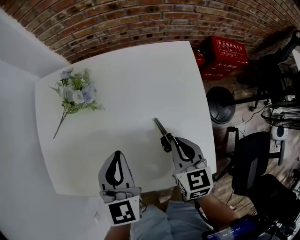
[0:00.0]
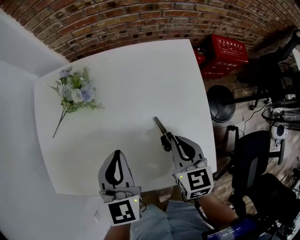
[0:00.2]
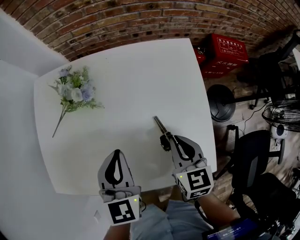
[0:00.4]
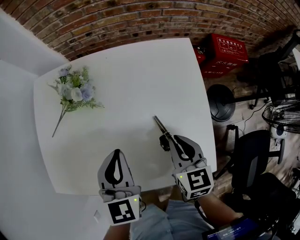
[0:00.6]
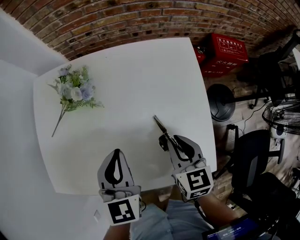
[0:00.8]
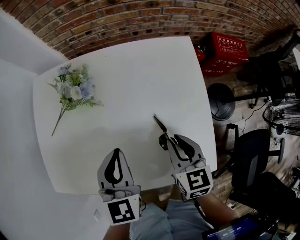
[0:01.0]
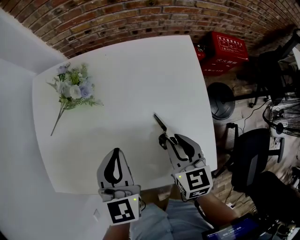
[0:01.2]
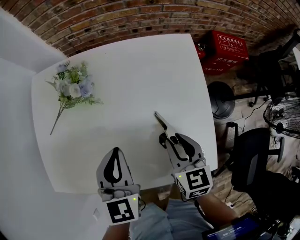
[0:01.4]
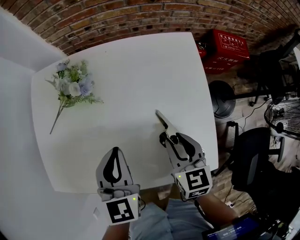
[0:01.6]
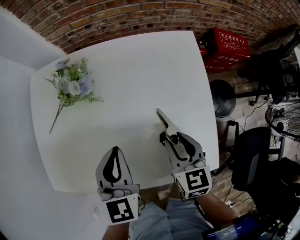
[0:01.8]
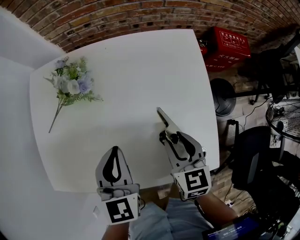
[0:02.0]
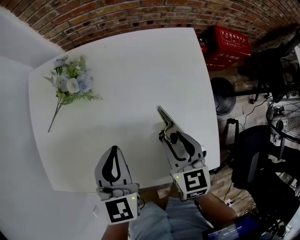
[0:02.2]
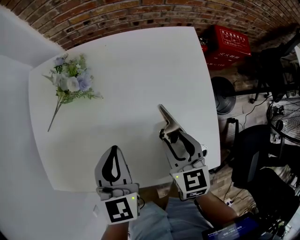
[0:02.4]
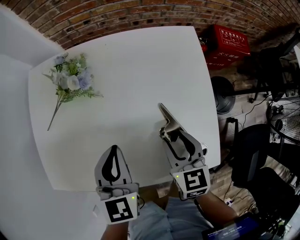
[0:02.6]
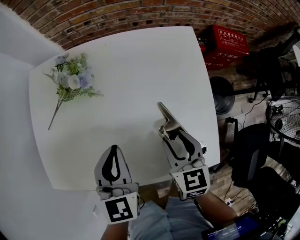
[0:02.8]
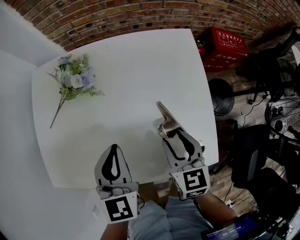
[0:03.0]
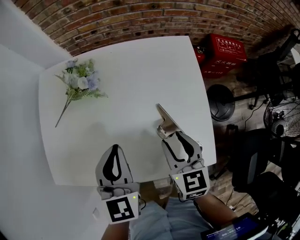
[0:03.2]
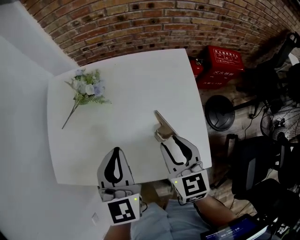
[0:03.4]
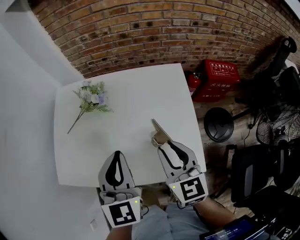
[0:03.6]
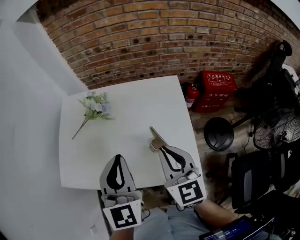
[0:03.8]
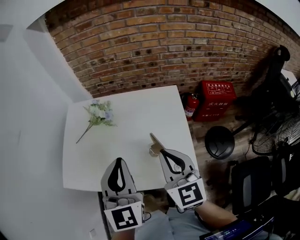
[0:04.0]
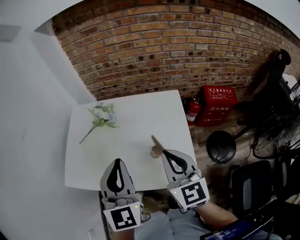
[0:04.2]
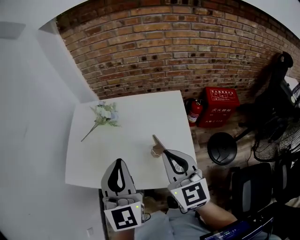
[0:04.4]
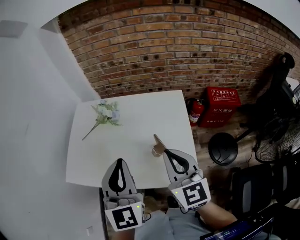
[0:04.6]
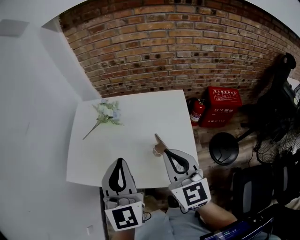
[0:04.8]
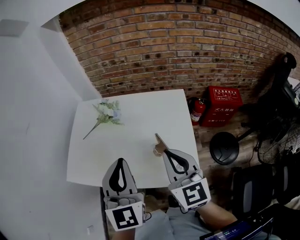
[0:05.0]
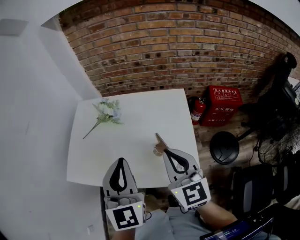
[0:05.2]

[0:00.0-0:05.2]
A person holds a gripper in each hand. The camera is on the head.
0.0 to 1.8 s: The right gripper opens its fingers.
1.8 to 3.4 s: The two grippers go roughly 10 cm upward.
3.4 to 5.2 s: The left gripper moves upward and backward, approximately 15 cm; the right gripper shifts approximately 15 cm upward, changes its angle by about 20 degrees, and closes.

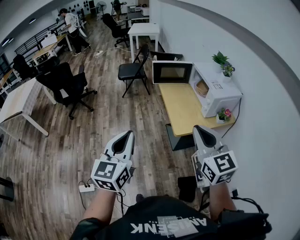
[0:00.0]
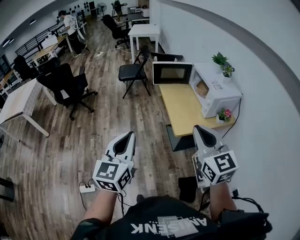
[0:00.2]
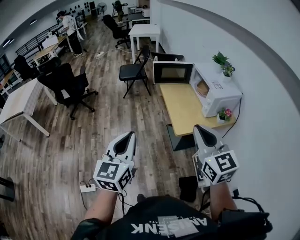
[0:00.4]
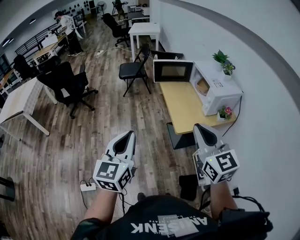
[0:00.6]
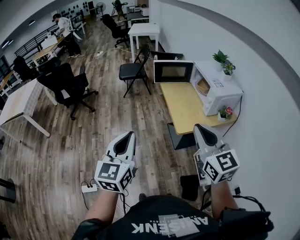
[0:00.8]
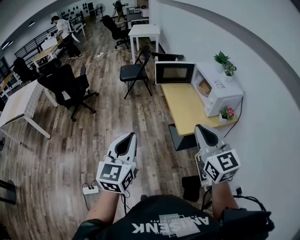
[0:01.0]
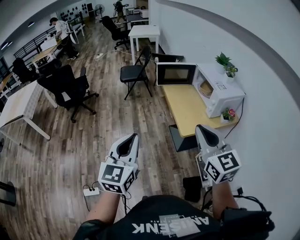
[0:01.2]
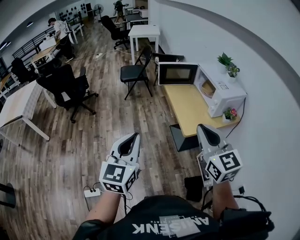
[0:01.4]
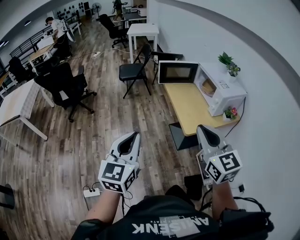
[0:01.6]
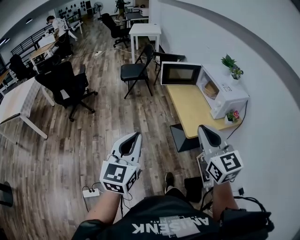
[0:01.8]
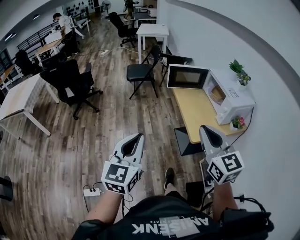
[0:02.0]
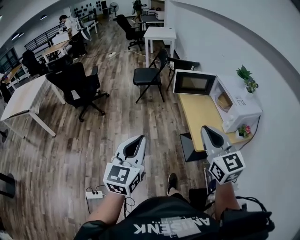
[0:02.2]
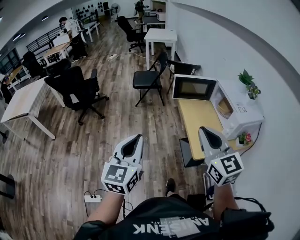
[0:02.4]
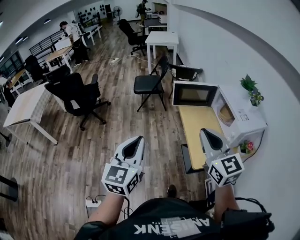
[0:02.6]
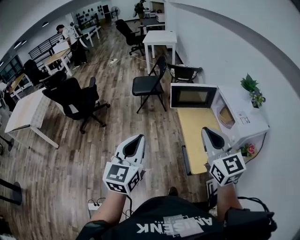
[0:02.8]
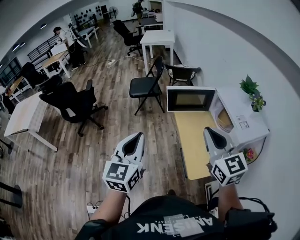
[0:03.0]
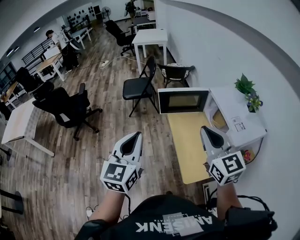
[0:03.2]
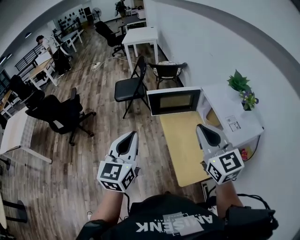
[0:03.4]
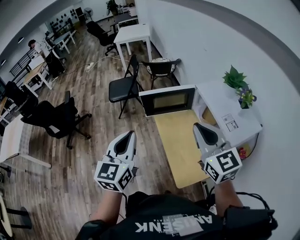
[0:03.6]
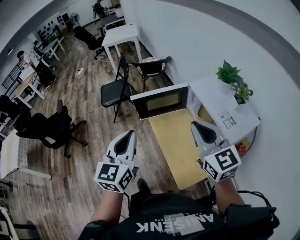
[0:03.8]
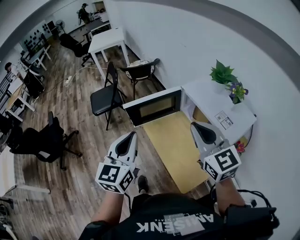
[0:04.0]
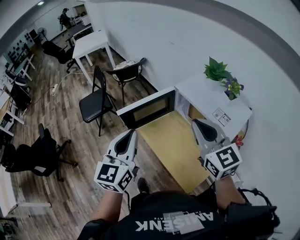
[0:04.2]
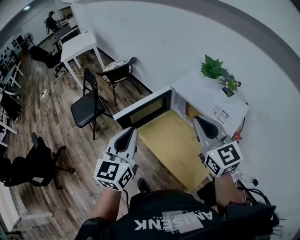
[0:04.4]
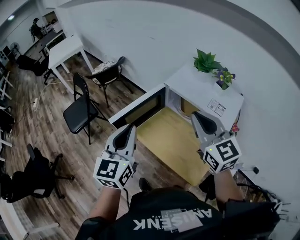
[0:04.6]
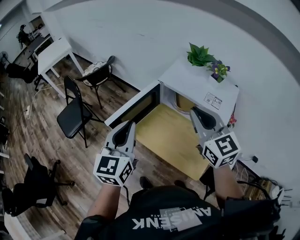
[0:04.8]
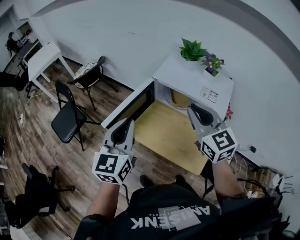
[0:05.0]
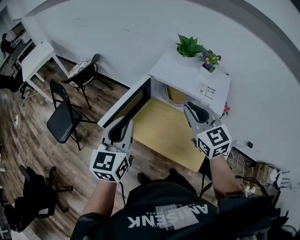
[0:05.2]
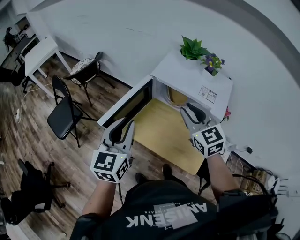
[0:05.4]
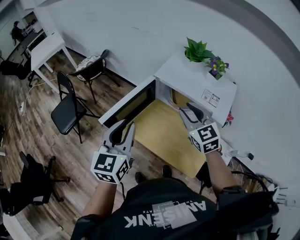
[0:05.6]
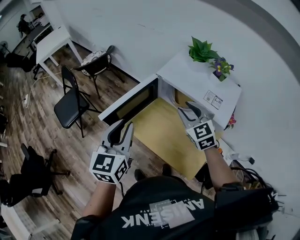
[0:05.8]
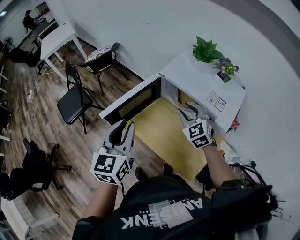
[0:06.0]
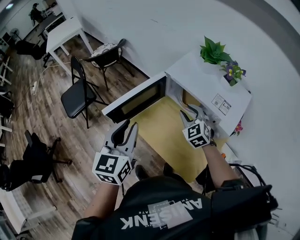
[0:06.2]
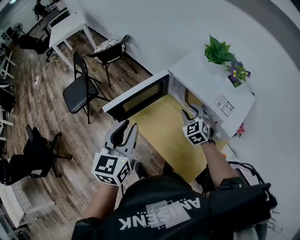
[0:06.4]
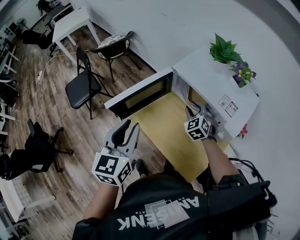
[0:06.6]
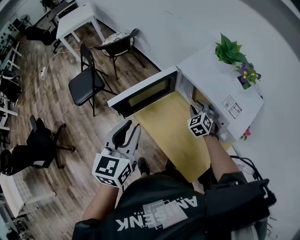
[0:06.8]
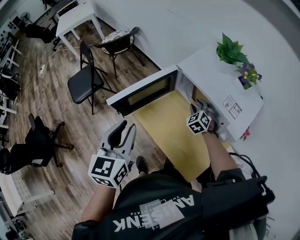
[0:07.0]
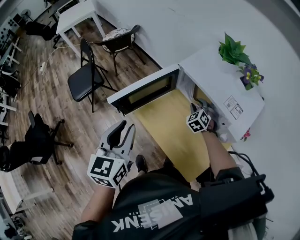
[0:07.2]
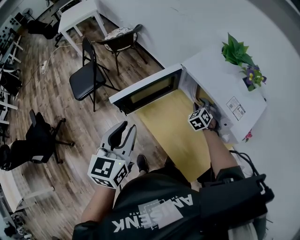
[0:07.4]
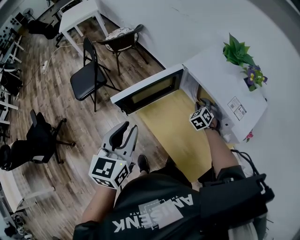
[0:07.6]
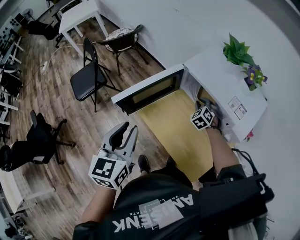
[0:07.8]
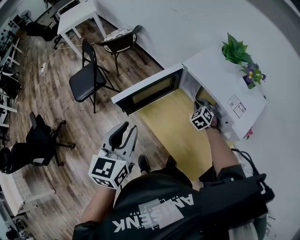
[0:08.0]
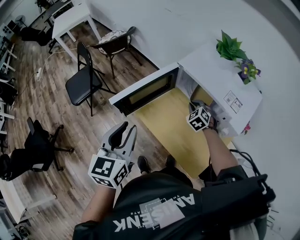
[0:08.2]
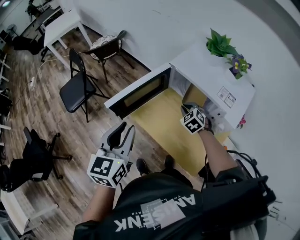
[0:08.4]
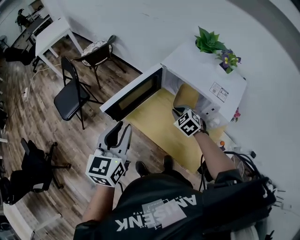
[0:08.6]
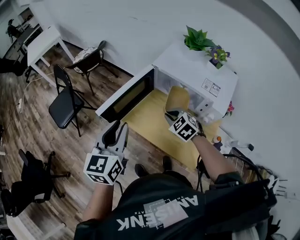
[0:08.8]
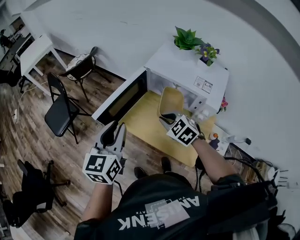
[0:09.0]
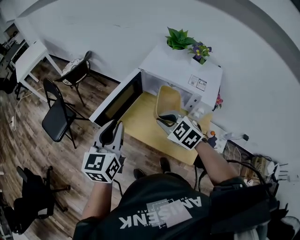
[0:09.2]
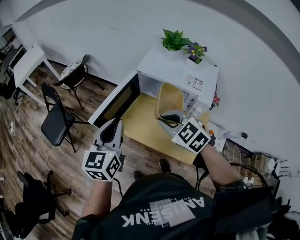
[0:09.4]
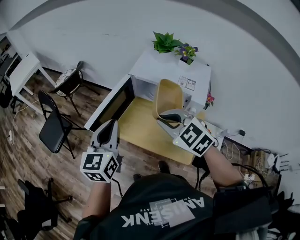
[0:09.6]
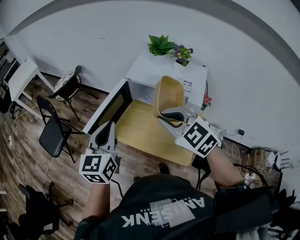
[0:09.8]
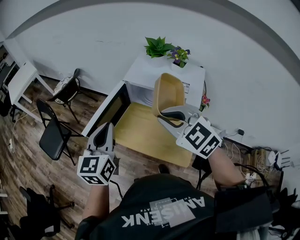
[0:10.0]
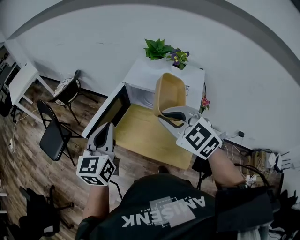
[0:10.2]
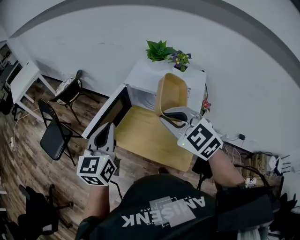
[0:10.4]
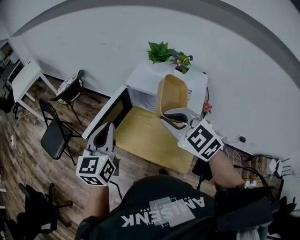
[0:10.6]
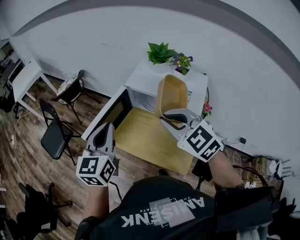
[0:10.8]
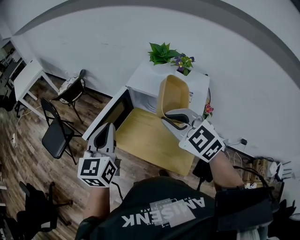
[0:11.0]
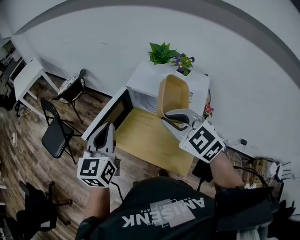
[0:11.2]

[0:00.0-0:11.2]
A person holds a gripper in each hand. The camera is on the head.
0.0 to 1.6 s: The two grippers go roughly 5 cm to the left.
1.6 to 3.2 s: The two grippers go some 35 cm forward.
3.2 to 4.8 s: The right gripper shifts by approximately 20 cm, and rotates approximately 40 degrees; the left gripper changes place by some 30 cm, and rotates about 40 degrees.
4.8 to 6.4 s: The right gripper goes approximately 25 cm downward and forward, swivels some 40 degrees, and opens, while the left gripper travels downward by approximately 5 cm, and opens.
6.4 to 8.0 s: The right gripper shifts some 10 cm downward and forward, and closes.
8.0 to 9.6 s: The right gripper goes about 35 cm upward and backward, and swivels roughly 30 degrees. The left gripper changes its angle by roughly 20 degrees.
9.6 to 11.2 s: The right gripper is displaced upward and to the right by about 10 cm. Meanwhile the left gripper moves roughly 5 cm.

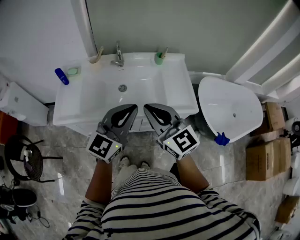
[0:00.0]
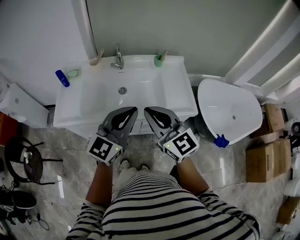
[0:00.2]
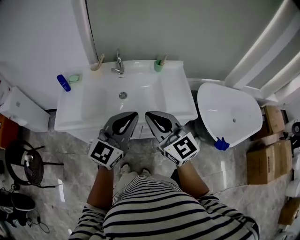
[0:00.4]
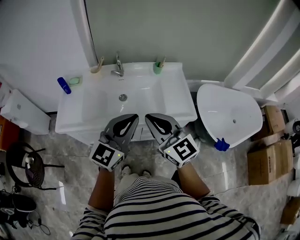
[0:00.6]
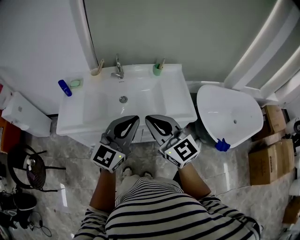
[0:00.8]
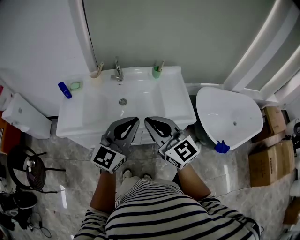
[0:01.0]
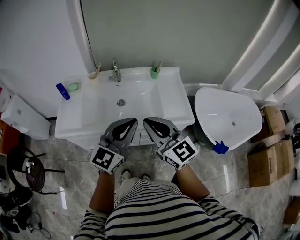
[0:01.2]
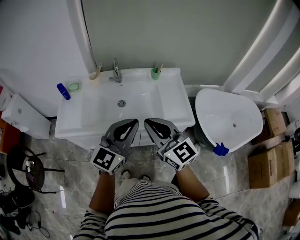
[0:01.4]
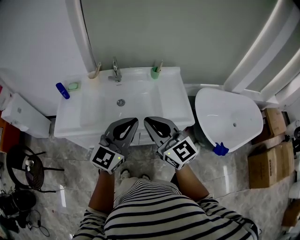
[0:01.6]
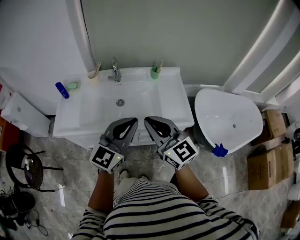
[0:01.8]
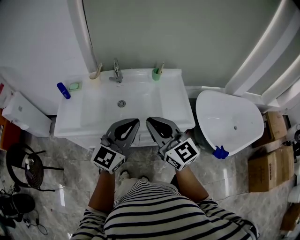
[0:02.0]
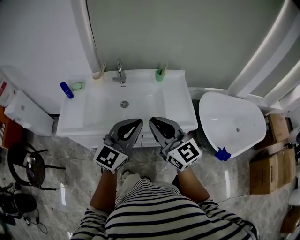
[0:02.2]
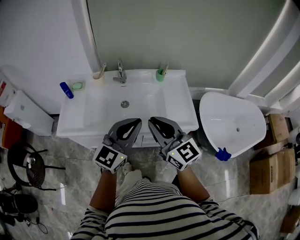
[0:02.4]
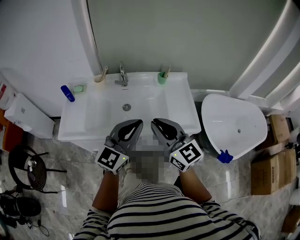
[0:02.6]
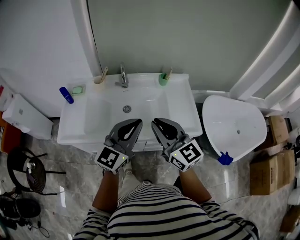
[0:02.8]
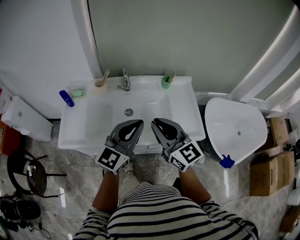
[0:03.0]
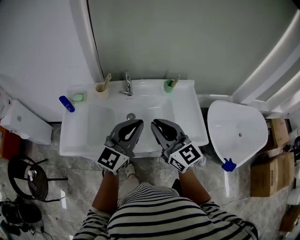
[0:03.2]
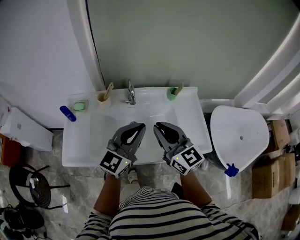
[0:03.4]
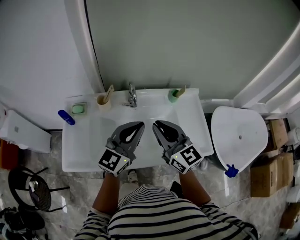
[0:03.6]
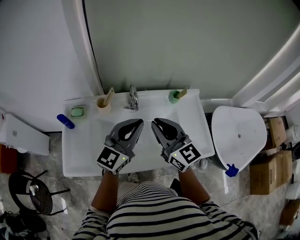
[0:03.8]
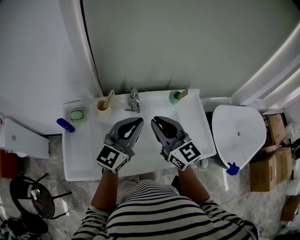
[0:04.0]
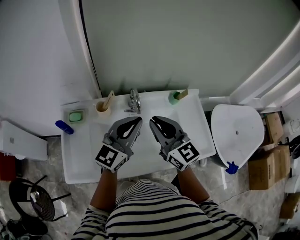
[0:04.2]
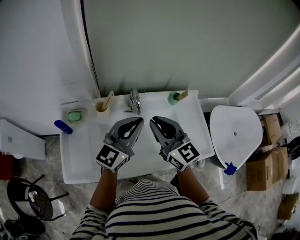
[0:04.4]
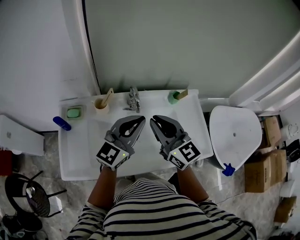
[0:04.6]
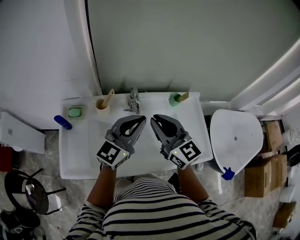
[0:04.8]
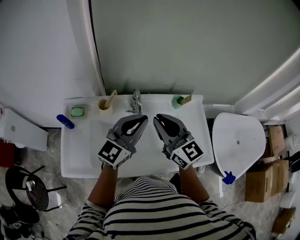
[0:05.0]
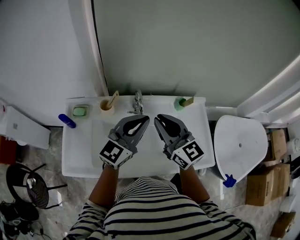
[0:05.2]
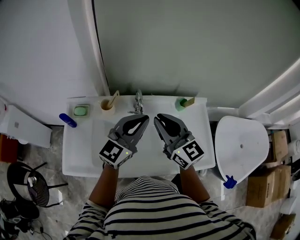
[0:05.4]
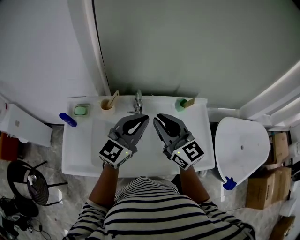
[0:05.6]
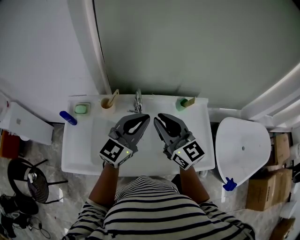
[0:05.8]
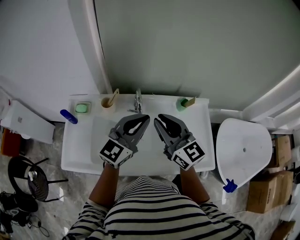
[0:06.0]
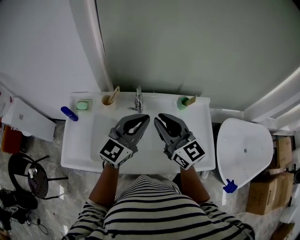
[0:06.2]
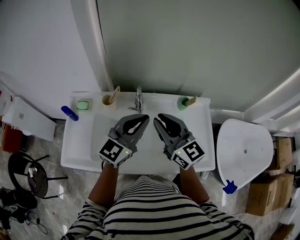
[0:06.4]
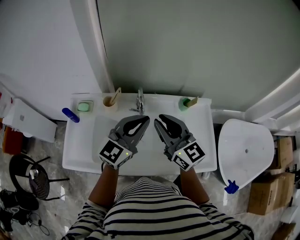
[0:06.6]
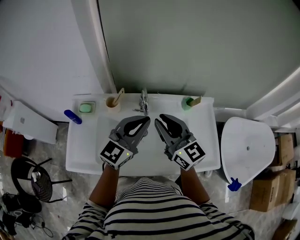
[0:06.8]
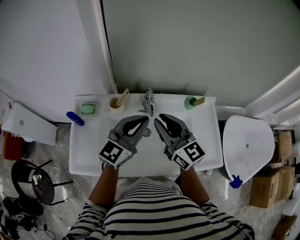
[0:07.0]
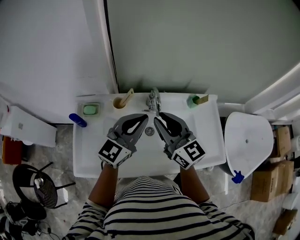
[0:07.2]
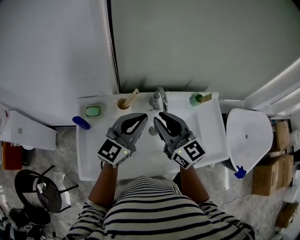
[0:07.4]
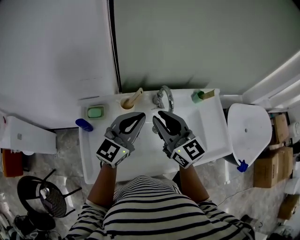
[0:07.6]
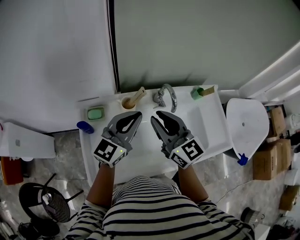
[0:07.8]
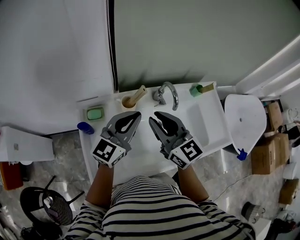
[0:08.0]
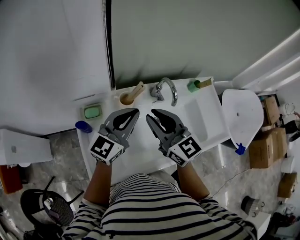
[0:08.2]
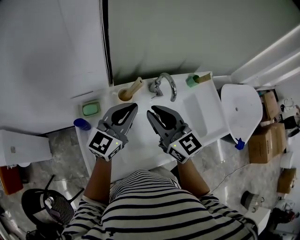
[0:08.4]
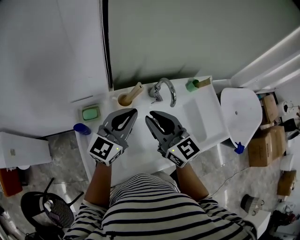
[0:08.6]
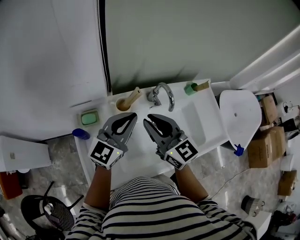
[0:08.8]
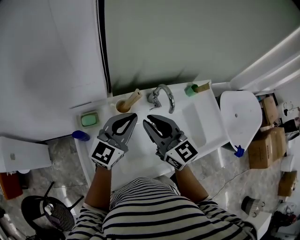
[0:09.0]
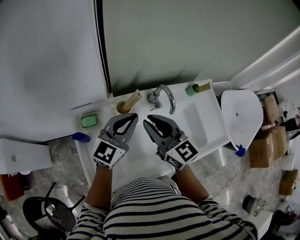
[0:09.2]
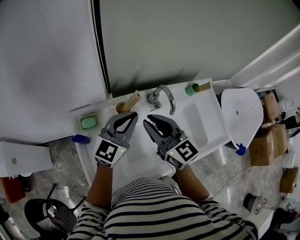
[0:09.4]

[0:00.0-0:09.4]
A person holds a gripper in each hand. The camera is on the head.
0.0 to 1.6 s: The grippers stay close to where they were, moving slightly.
1.6 to 3.2 s: The right gripper is displaced forward by some 15 cm. The left gripper heads forward and to the left, covering approximately 15 cm.
3.2 to 4.8 s: Both grippers travel together forward and to the left, roughly 15 cm.
4.8 to 6.2 s: The grippers make only small movements.
6.2 to 7.8 s: Both grippers travel together to the left, about 20 cm.
7.8 to 9.4 s: The left gripper shifts by some 5 cm.
